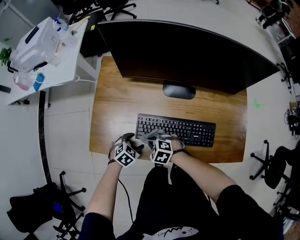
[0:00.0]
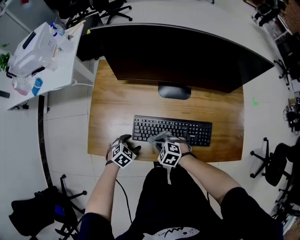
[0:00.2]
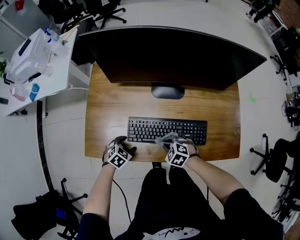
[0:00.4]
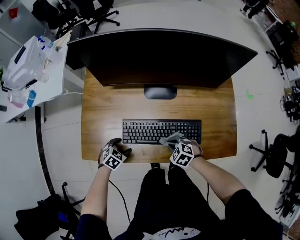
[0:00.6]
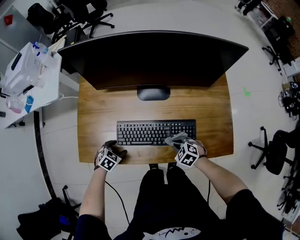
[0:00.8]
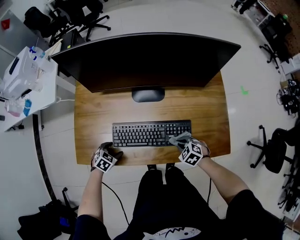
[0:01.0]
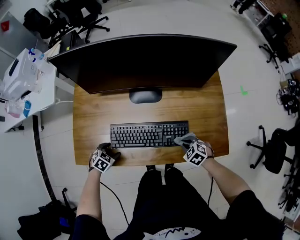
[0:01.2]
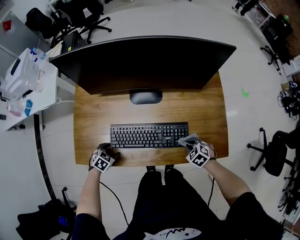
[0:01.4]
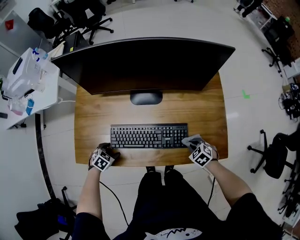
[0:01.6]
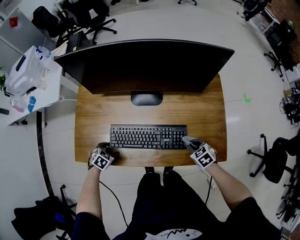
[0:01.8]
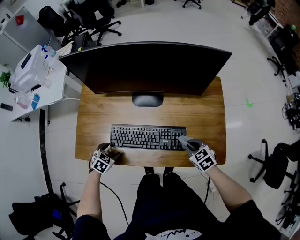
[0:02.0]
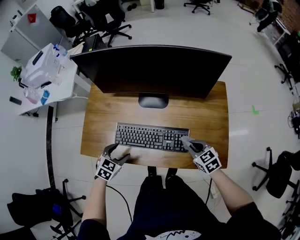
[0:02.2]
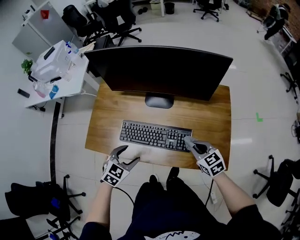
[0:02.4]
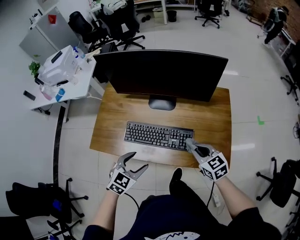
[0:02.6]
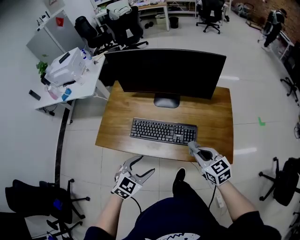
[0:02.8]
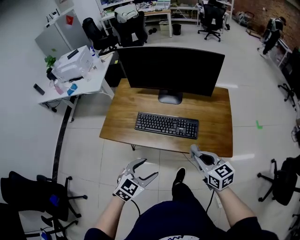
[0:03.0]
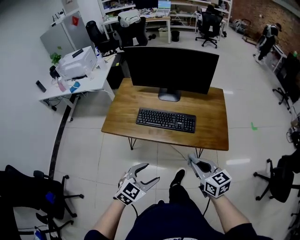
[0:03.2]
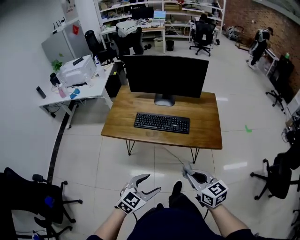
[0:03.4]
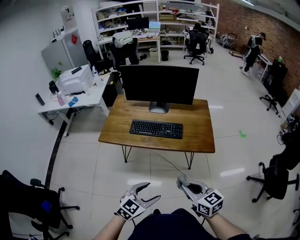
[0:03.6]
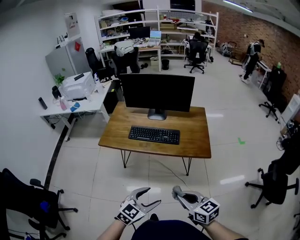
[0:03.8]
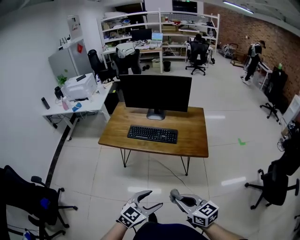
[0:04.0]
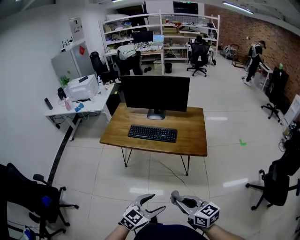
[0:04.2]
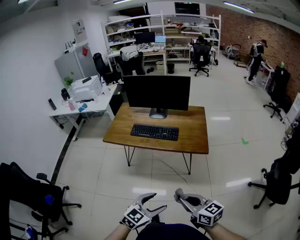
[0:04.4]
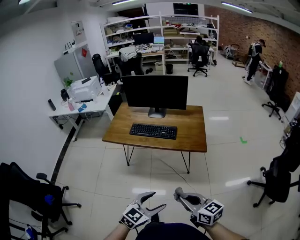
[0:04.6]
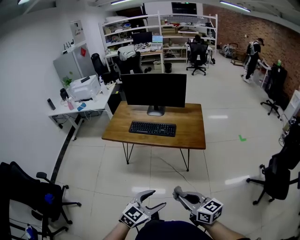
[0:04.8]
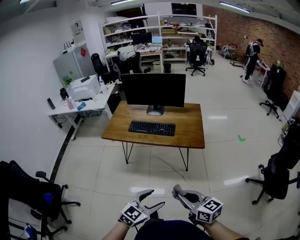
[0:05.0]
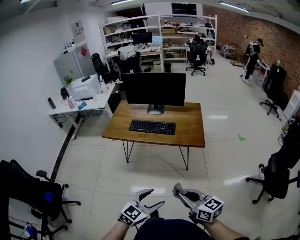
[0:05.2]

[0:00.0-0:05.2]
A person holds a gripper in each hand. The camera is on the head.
0:00.0 to 0:01.8: The right gripper shifts by about 40 cm, and swivels about 40 degrees.
0:01.8 to 0:03.4: The right gripper travels backward and upward by approximately 50 cm, and points its fingers roughly 40 degrees further upward, while the left gripper moves backward, upward and to the right, approximately 50 cm, and points its fingers about 40 degrees further upward.
0:03.4 to 0:05.2: The right gripper moves backward, roughly 25 cm. The left gripper travels backward and to the right by about 25 cm.

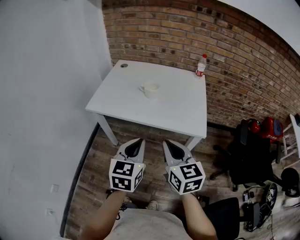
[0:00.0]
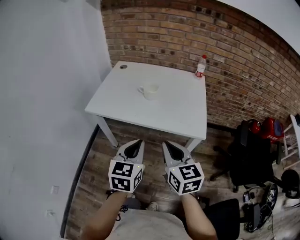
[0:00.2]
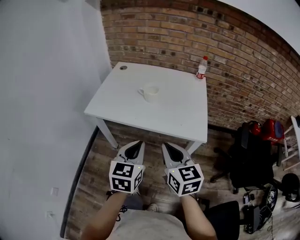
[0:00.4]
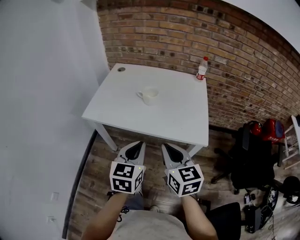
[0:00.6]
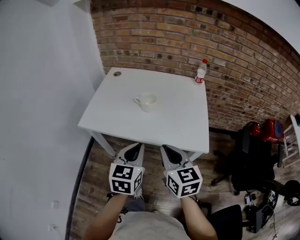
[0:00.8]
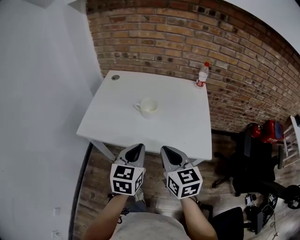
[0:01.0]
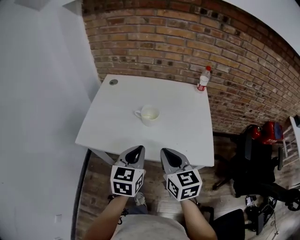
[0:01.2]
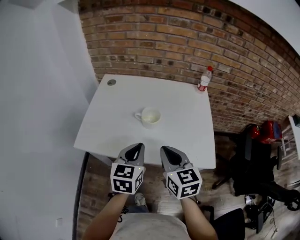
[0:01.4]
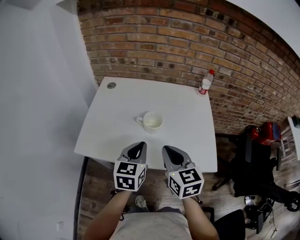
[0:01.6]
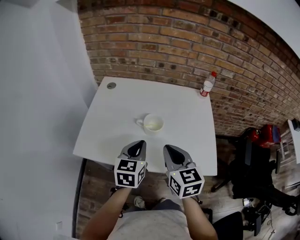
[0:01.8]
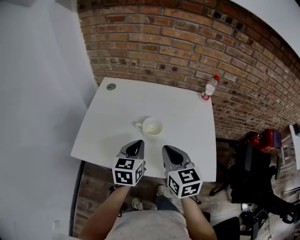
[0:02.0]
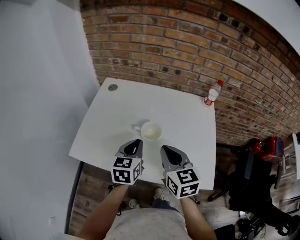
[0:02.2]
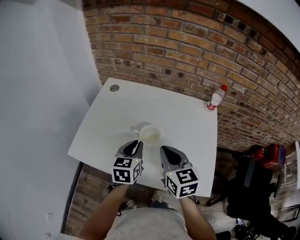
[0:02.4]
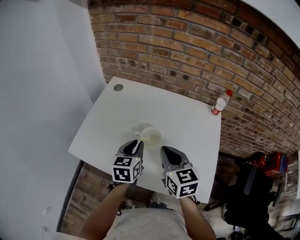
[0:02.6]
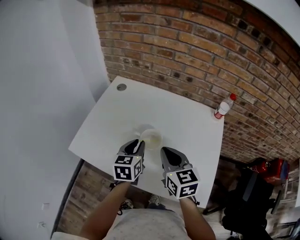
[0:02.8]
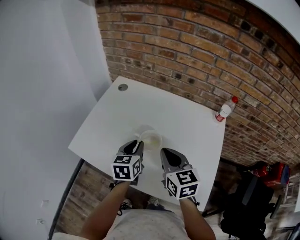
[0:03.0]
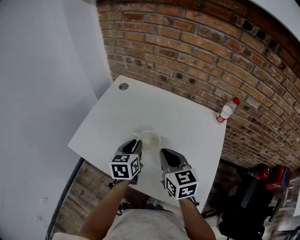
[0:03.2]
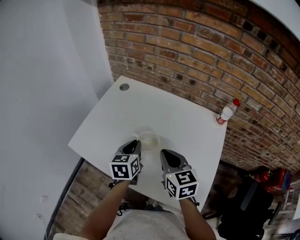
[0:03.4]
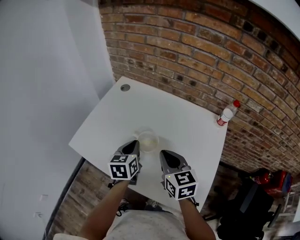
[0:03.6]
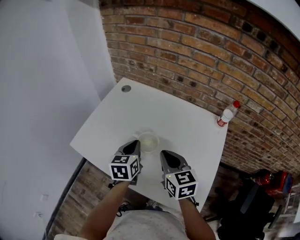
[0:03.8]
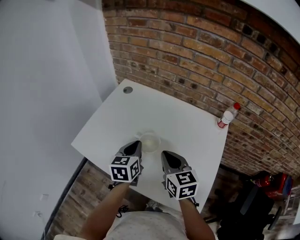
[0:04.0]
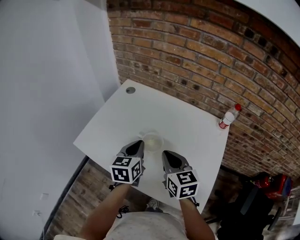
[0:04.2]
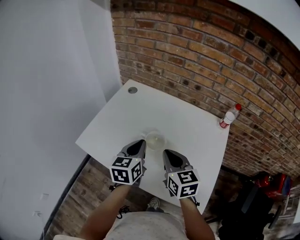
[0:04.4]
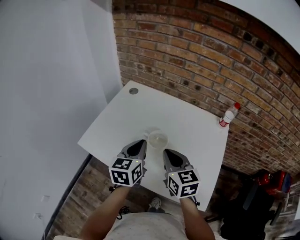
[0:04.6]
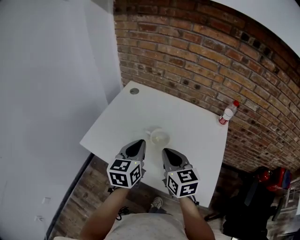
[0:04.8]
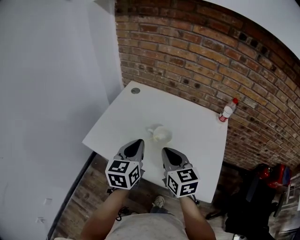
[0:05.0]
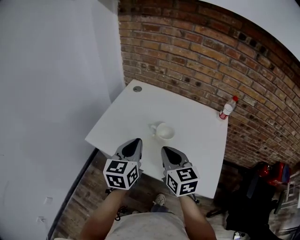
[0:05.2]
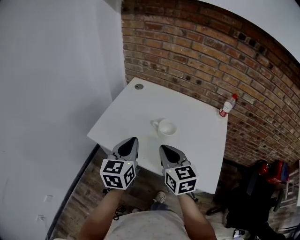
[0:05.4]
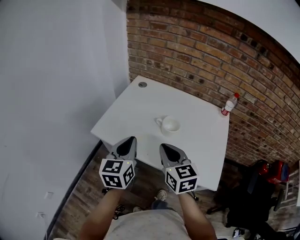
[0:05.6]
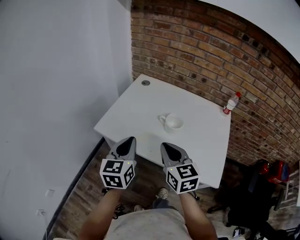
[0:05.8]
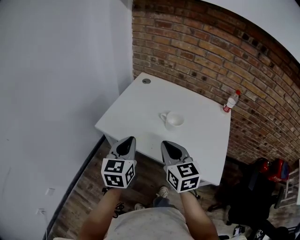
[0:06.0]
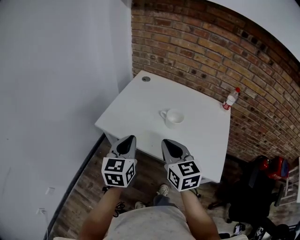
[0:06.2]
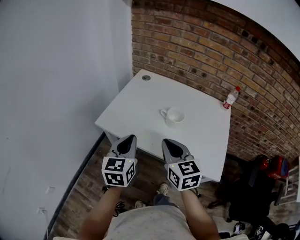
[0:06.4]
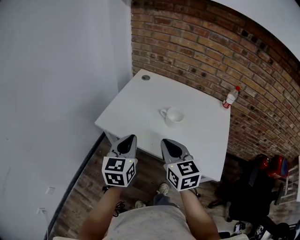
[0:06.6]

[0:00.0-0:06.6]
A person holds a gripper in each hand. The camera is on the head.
0:00.0 to 0:01.6: Both grippers travel together forward, about 30 cm.
0:01.6 to 0:03.2: The left gripper is displaced forward and downward by about 15 cm, and turns by about 30 degrees; the right gripper shifts some 15 cm forward and to the right.
0:03.2 to 0:05.0: The left gripper shifts about 15 cm upward, backward and to the left, while the right gripper moves to the left and backward, about 10 cm.
0:05.0 to 0:06.6: The left gripper heads to the left and backward, covering about 15 cm. The right gripper goes about 15 cm backward and to the left.

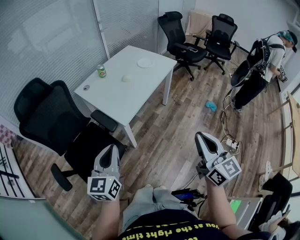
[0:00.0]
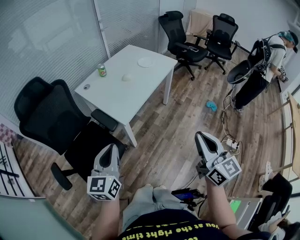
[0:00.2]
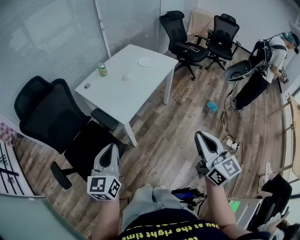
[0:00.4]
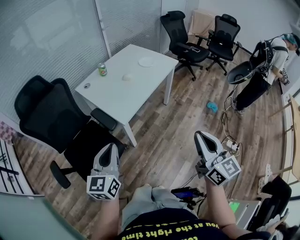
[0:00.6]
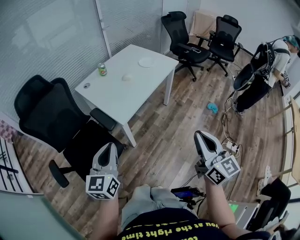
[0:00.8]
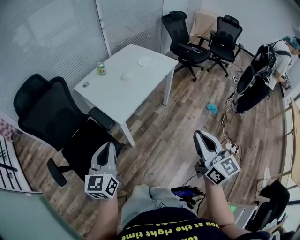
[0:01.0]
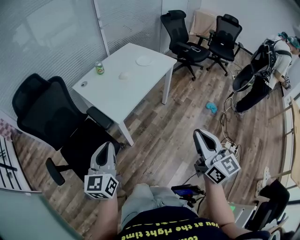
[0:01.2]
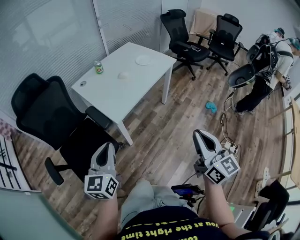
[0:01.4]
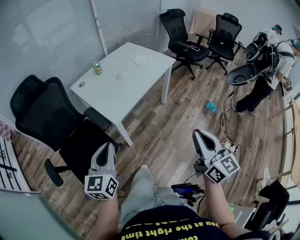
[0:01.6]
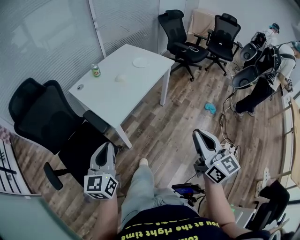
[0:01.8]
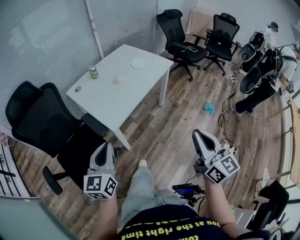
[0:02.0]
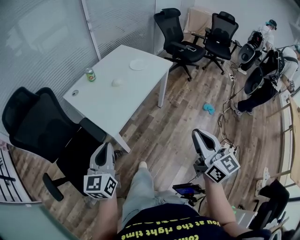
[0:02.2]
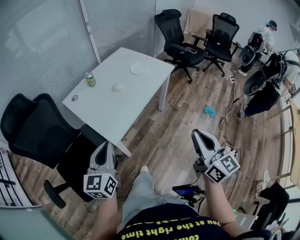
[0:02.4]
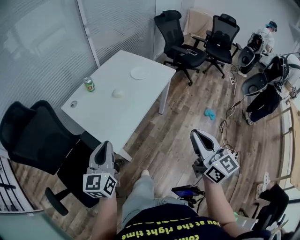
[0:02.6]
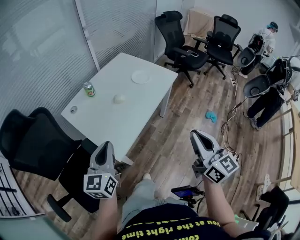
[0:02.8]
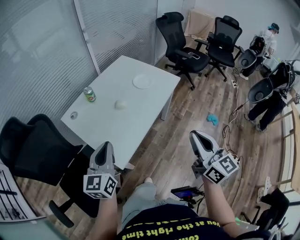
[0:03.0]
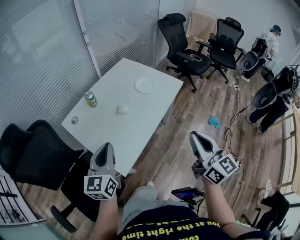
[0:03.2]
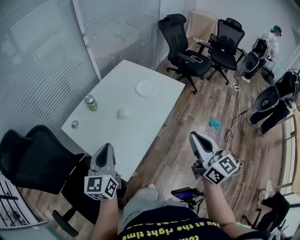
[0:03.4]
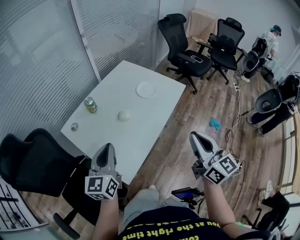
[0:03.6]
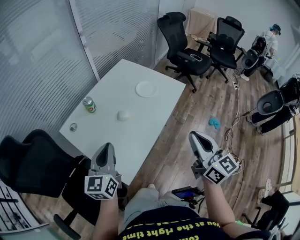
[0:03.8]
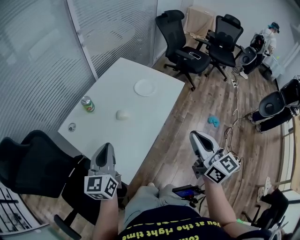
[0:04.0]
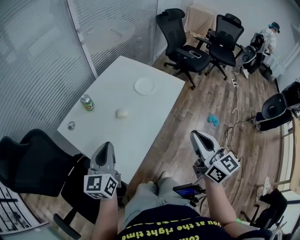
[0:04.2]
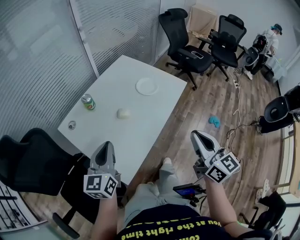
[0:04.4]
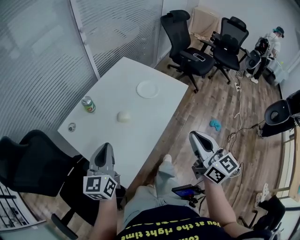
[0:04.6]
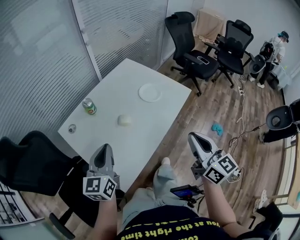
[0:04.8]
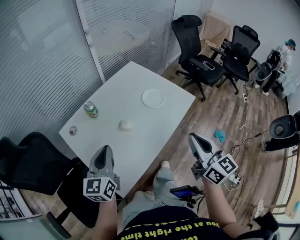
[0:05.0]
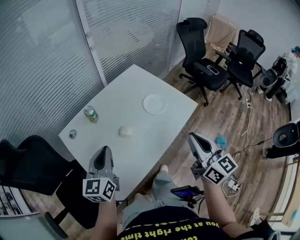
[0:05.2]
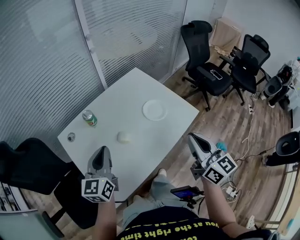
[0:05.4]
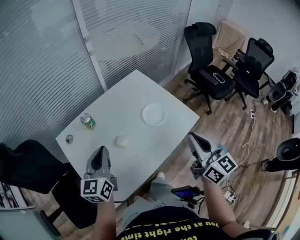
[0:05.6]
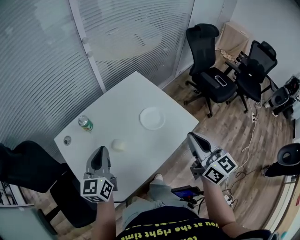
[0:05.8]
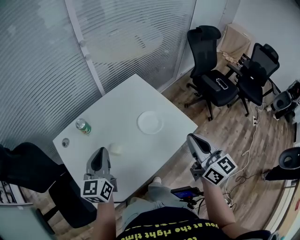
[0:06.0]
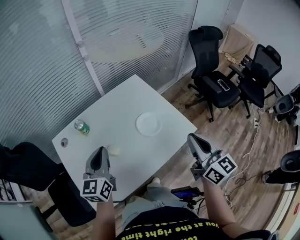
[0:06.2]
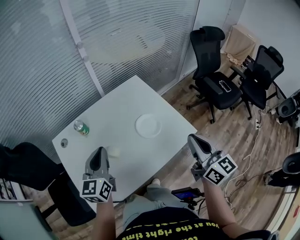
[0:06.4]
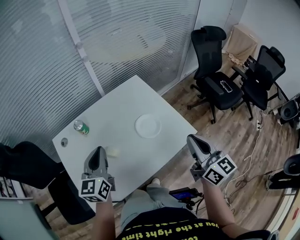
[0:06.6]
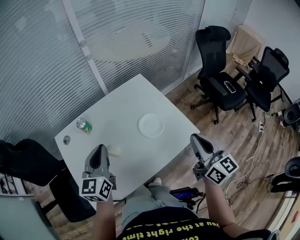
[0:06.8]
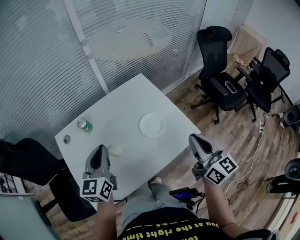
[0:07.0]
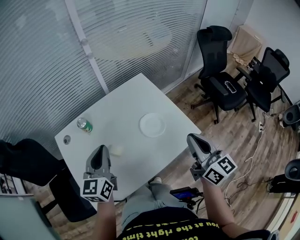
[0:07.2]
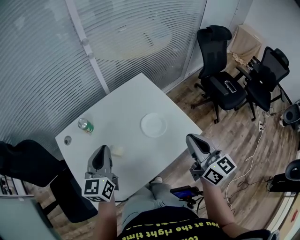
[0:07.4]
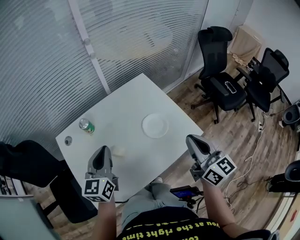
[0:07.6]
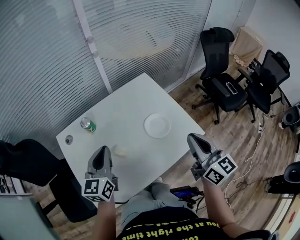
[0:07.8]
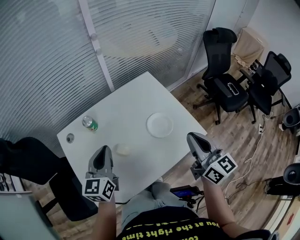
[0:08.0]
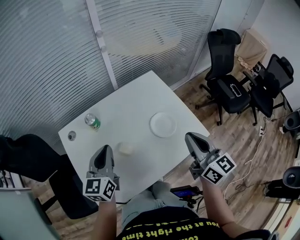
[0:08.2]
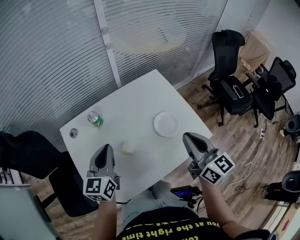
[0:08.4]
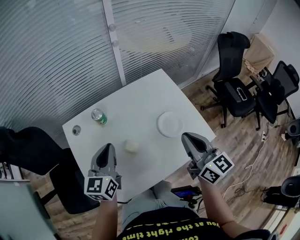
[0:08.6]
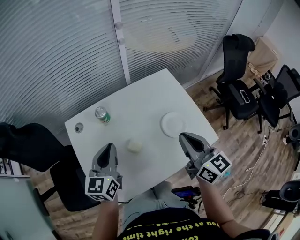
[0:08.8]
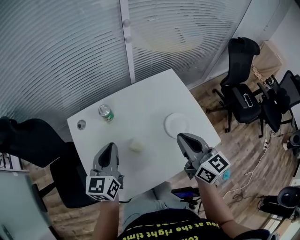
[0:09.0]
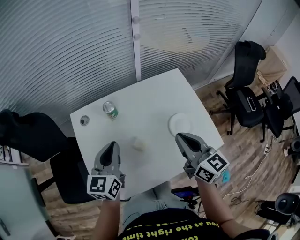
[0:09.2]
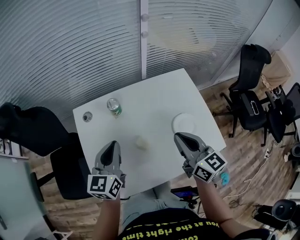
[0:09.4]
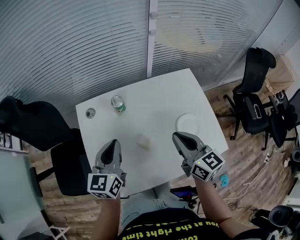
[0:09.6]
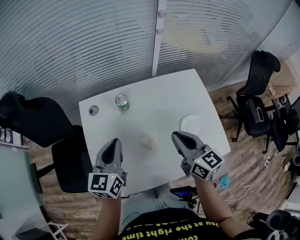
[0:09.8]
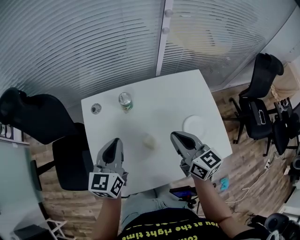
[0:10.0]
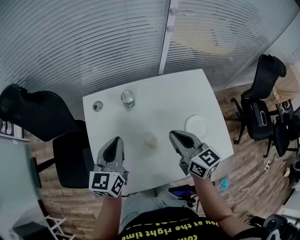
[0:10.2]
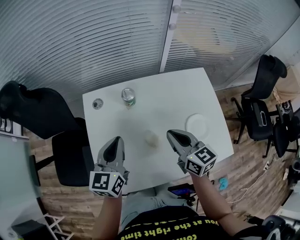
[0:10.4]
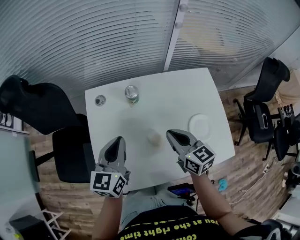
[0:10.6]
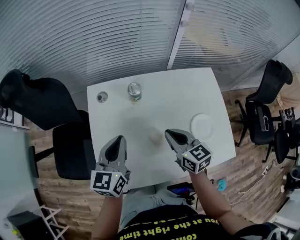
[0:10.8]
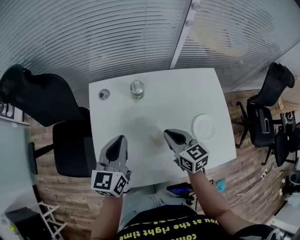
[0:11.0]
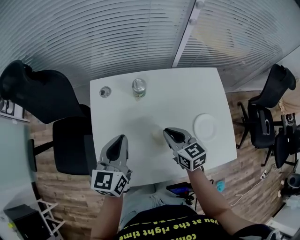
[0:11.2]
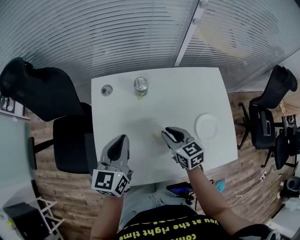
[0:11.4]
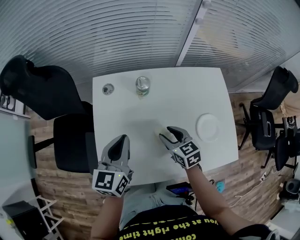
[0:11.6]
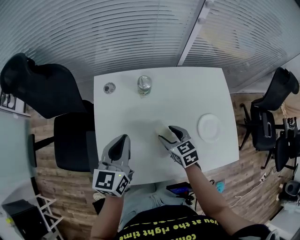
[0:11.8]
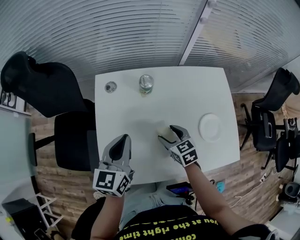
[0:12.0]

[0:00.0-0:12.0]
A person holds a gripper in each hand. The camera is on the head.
0:00.0 to 0:01.6: The left gripper moves approximately 5 cm, while the right gripper moves to the right, roughly 5 cm.
0:01.6 to 0:03.0: The grippers both shift forward by roughly 30 cm.
0:03.0 to 0:04.4: The two grippers go approximately 10 cm forward.
0:04.4 to 0:06.0: Both grippers travel together forward and to the right, about 25 cm.
0:06.0 to 0:07.6: The grippers move only a little.
0:07.6 to 0:09.0: The left gripper goes about 5 cm to the left; the right gripper shifts about 15 cm to the left and forward.
0:09.0 to 0:10.4: The right gripper shifts roughly 15 cm to the left, downward and forward. Meanwhile the left gripper travels to the left by some 5 cm.
0:10.4 to 0:12.0: The right gripper moves downward, some 15 cm, turns by approximately 30 degrees, and opens.
